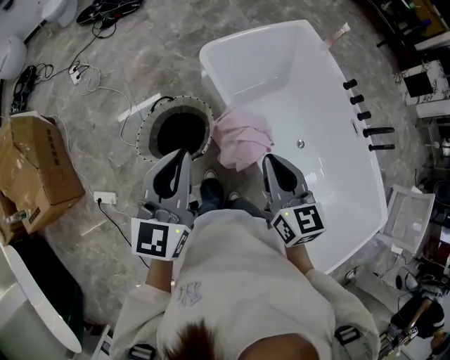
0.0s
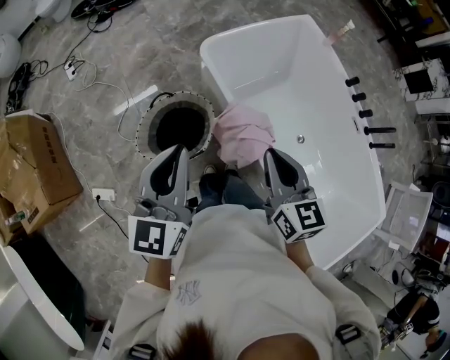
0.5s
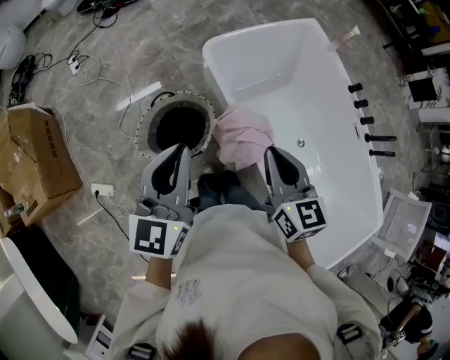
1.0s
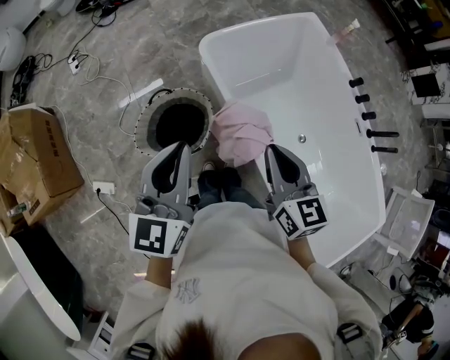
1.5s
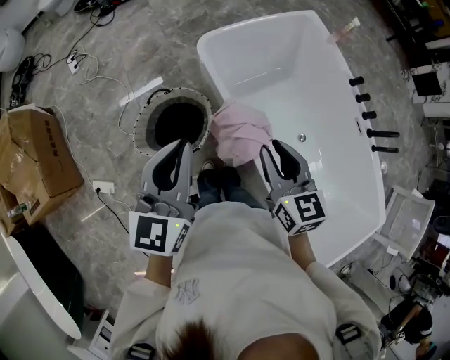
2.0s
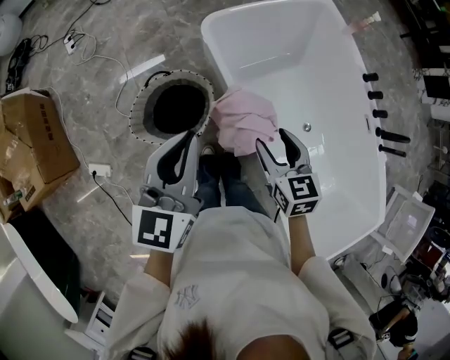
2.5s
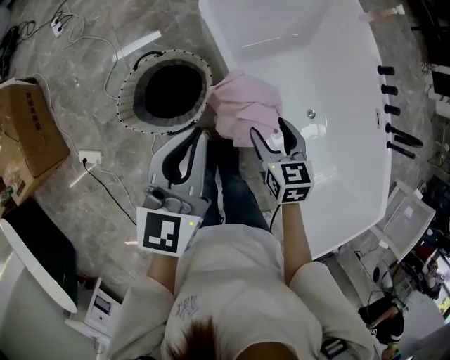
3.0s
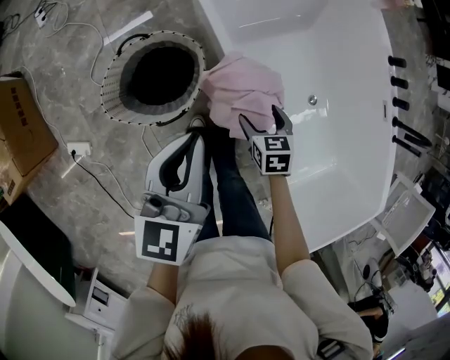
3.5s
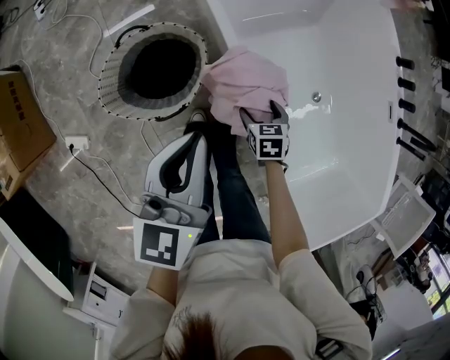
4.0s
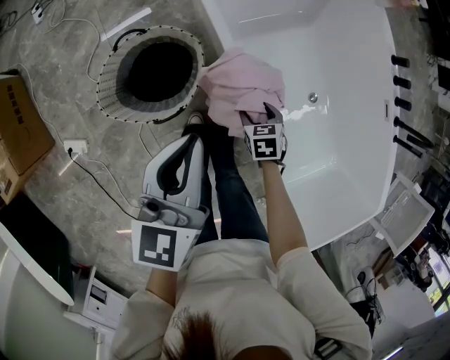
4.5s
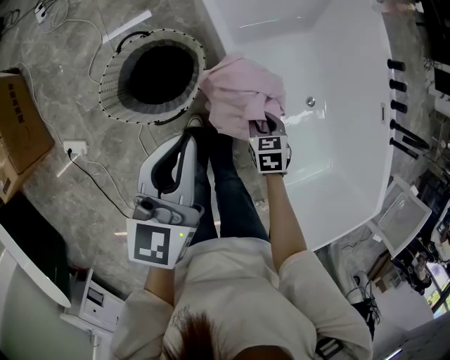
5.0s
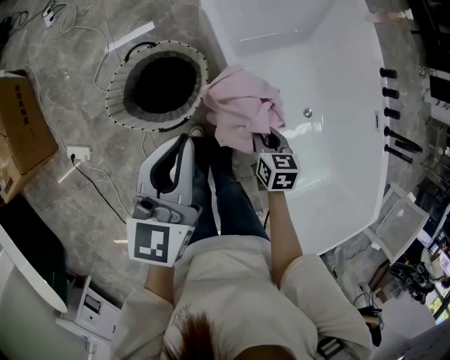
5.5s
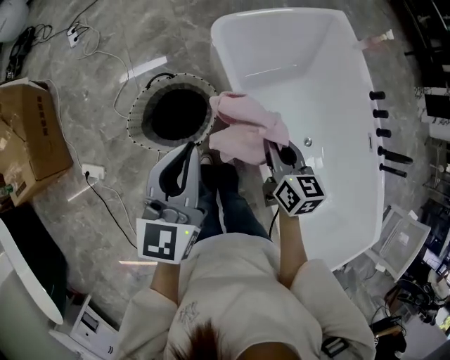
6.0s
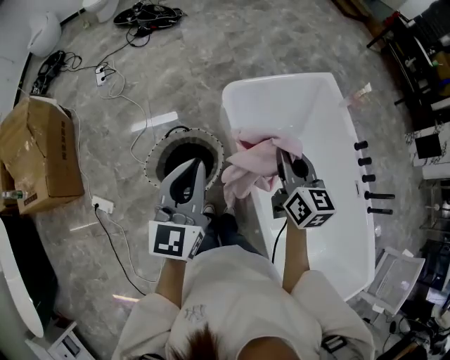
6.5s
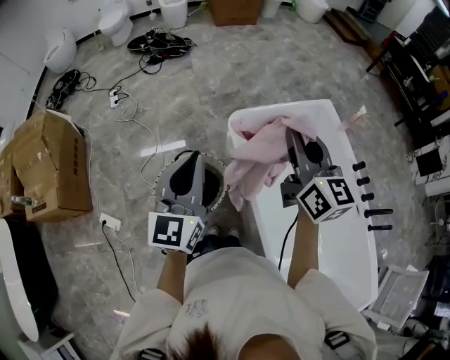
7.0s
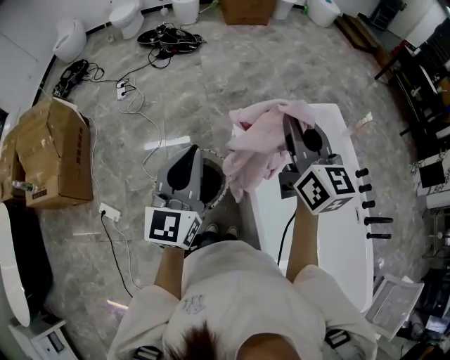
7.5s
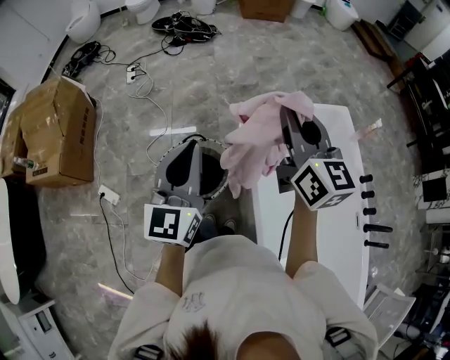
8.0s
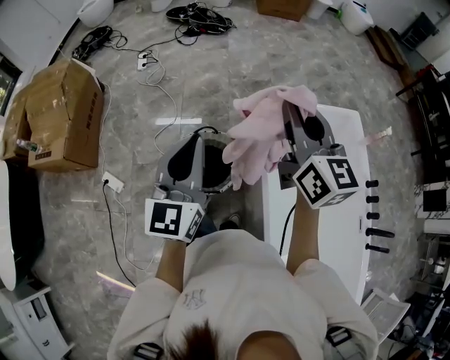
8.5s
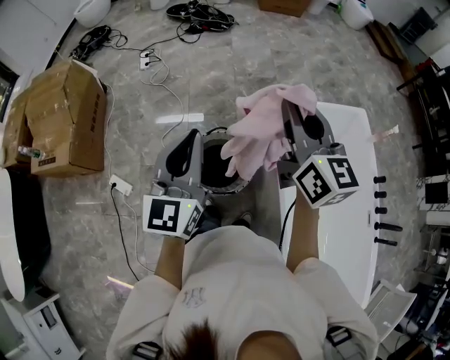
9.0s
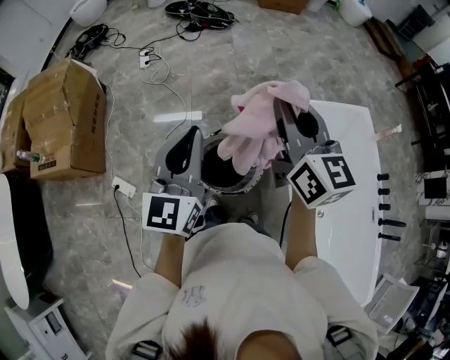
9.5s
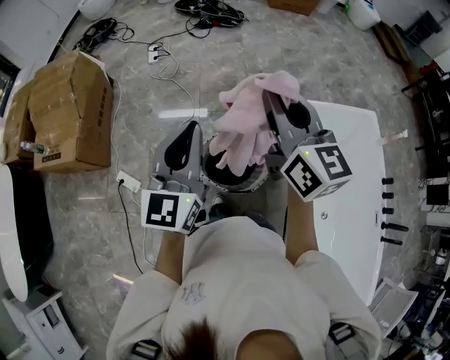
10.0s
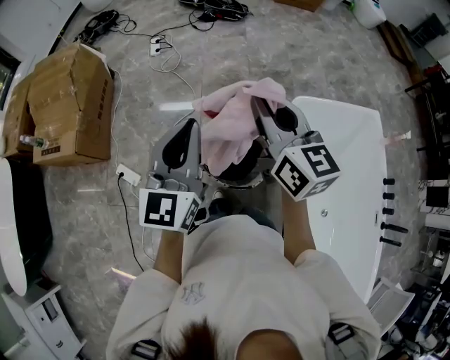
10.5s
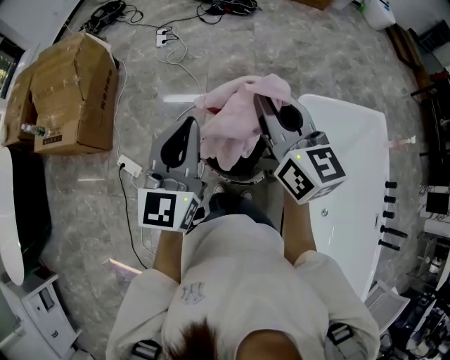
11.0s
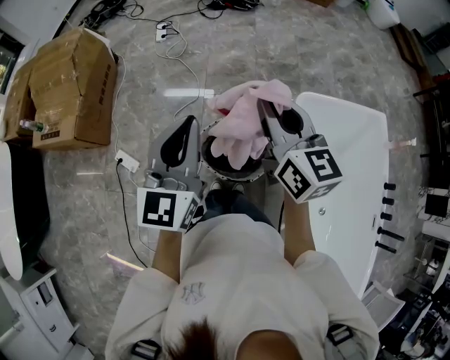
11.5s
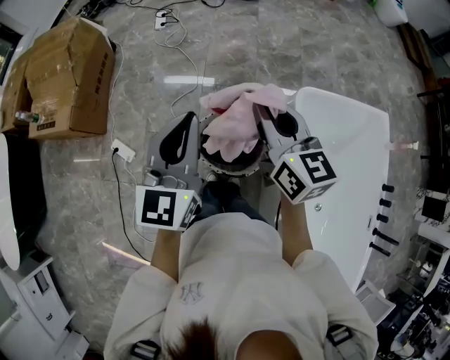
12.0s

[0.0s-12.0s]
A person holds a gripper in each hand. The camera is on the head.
0.0s to 2.0s: The right gripper shifts approximately 5 cm forward; the left gripper changes place by some 5 cm.
2.0s to 4.0s: The left gripper heads downward, covering about 20 cm, and changes its angle by approximately 20 degrees. Meanwhile the right gripper heads downward, covering some 40 cm, points its fingers some 40 degrees further downward, and opens up.
4.0s to 6.0s: The left gripper travels upward and to the left by approximately 10 cm. Meanwhile the right gripper heads upward, covering about 30 cm, angles its fingers upward, by approximately 40 degrees, and closes up.
6.0s to 8.0s: The left gripper travels upward by approximately 15 cm, and turns by about 30 degrees. Meanwhile the right gripper is displaced upward by some 35 cm, and changes its angle by approximately 40 degrees.
8.0s to 10.0s: The two grippers go some 25 cm to the left.
10.0s to 12.0s: The right gripper shifts roughly 10 cm downward.

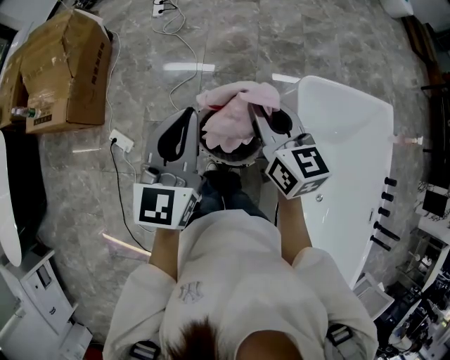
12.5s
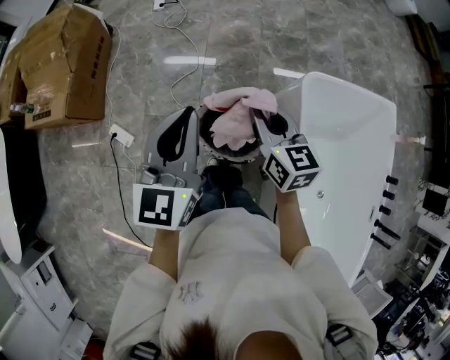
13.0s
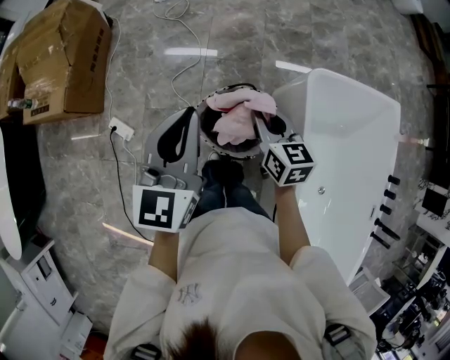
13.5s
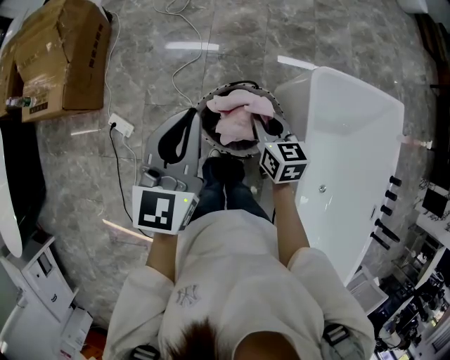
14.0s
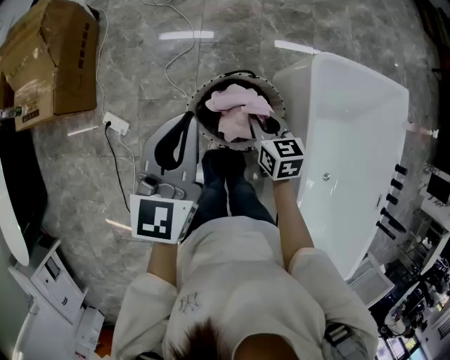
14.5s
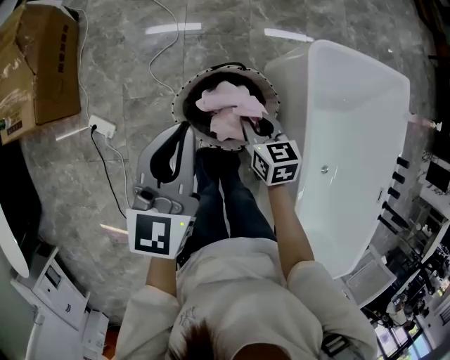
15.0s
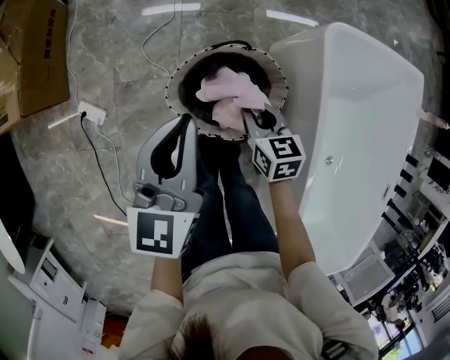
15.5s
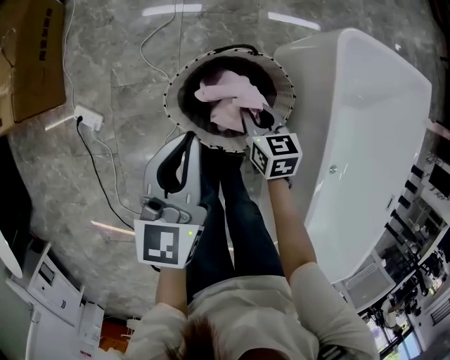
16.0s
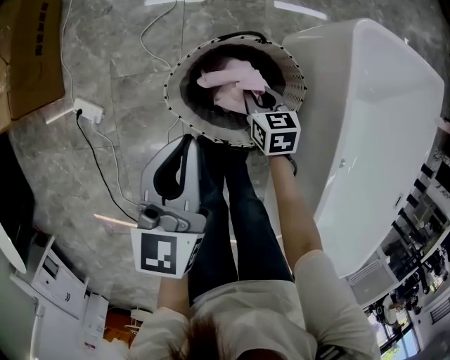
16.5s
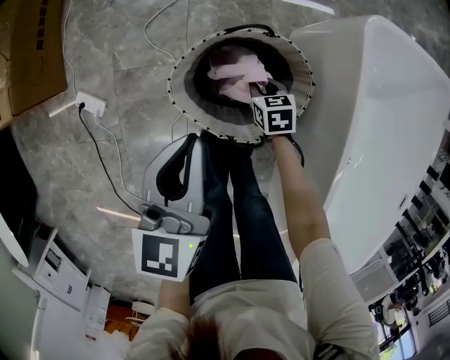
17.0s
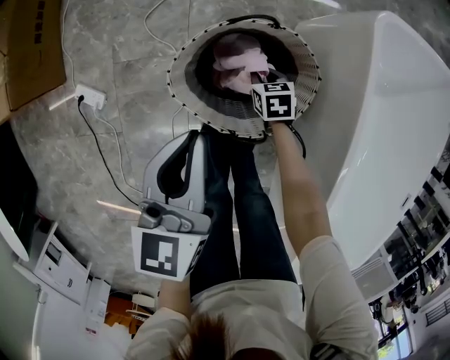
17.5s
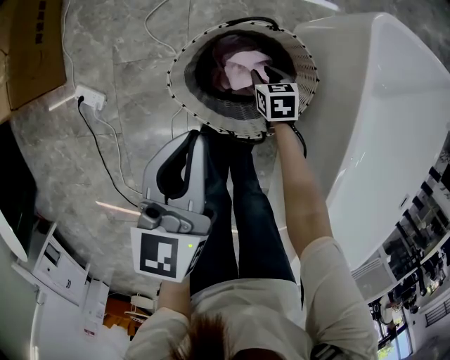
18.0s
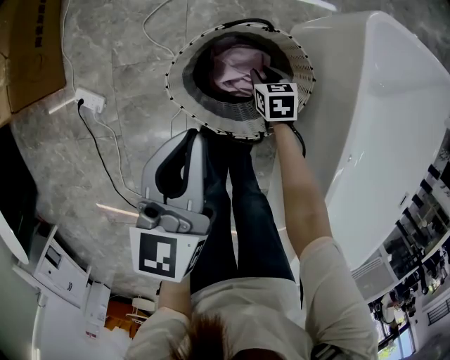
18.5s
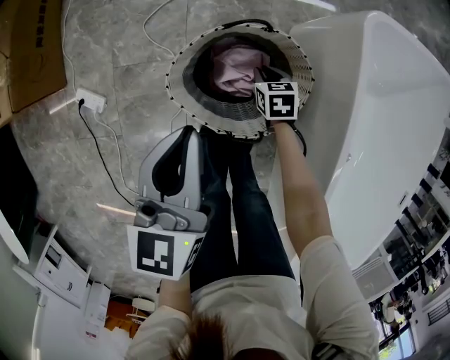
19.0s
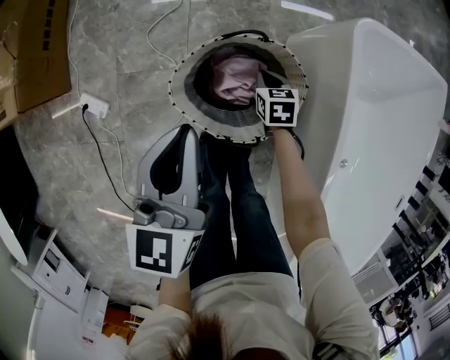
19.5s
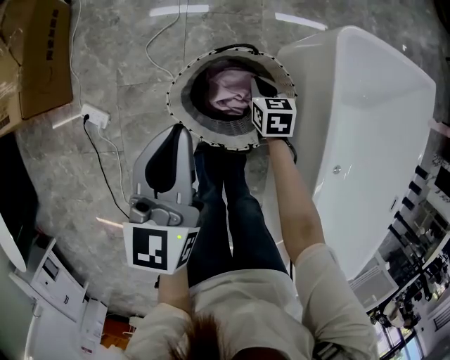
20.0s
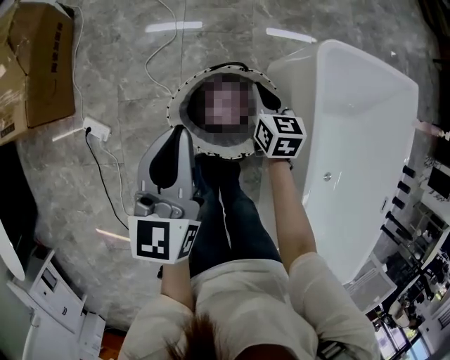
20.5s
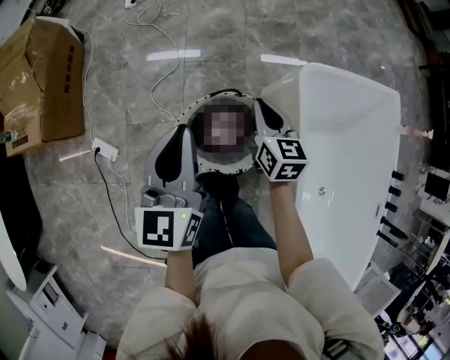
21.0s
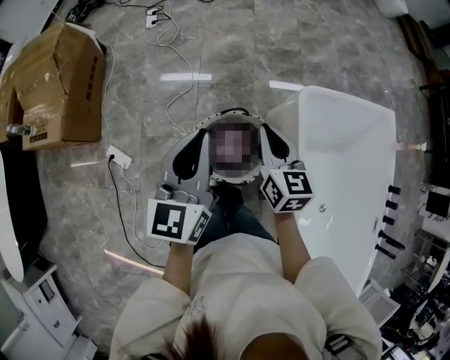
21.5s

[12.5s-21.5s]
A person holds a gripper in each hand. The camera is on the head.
12.5s to 14.5s: The right gripper shifts about 25 cm downward, and rotates some 20 degrees, while the left gripper shifts roughly 5 cm downward.
14.5s to 17.0s: The grippers both shift downward by roughly 30 cm. The right gripper rotates roughly 20 degrees.
17.0s to 19.5s: The right gripper shifts by approximately 5 cm.
19.5s to 21.5s: The left gripper is displaced upward by about 20 cm; the right gripper heads upward, covering approximately 40 cm, and angles its fingers upward, by about 40 degrees.

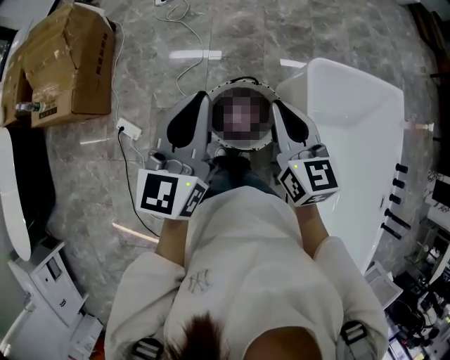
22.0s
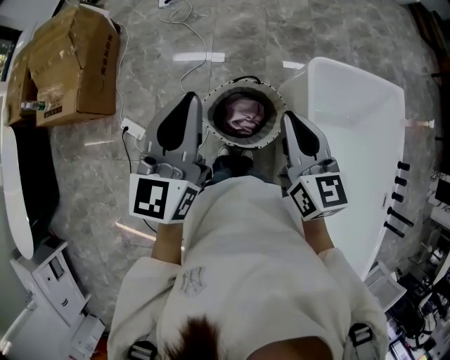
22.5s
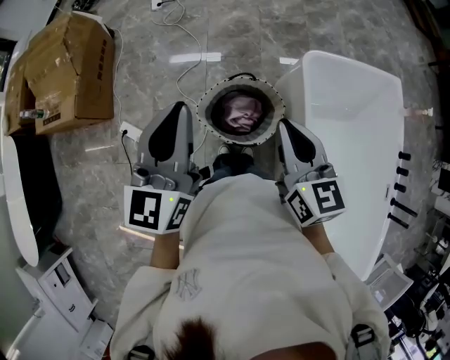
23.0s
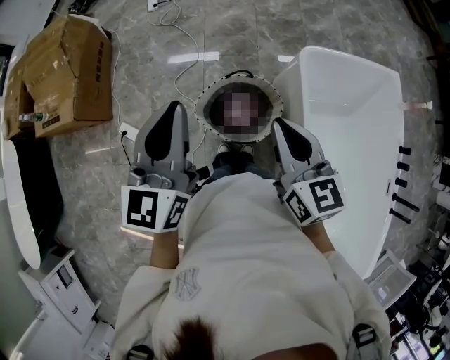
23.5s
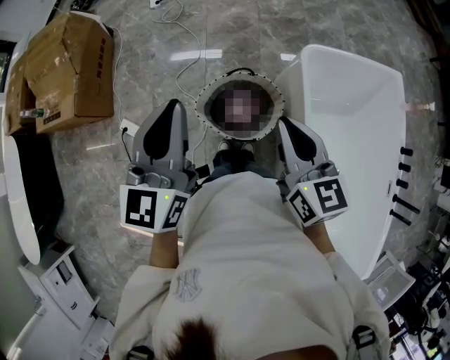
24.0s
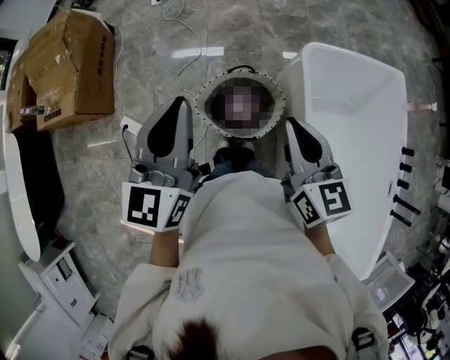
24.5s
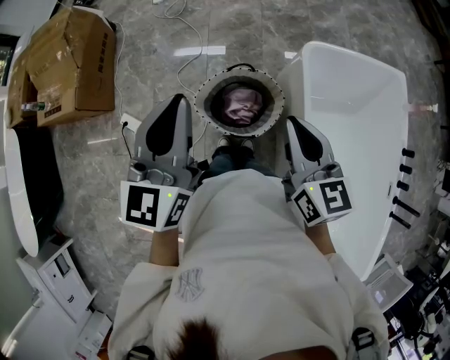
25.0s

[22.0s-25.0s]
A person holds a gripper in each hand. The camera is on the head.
22.0s to 23.5s: The left gripper moves about 5 cm. The right gripper is displaced backward by some 10 cm.
23.5s to 25.0s: The grippers make only small movements.

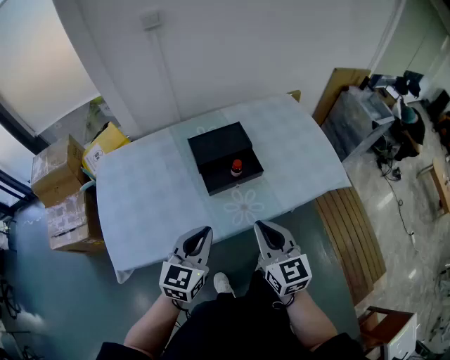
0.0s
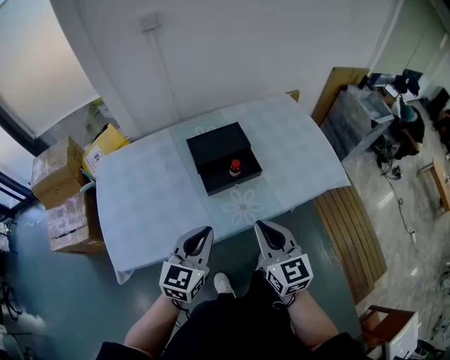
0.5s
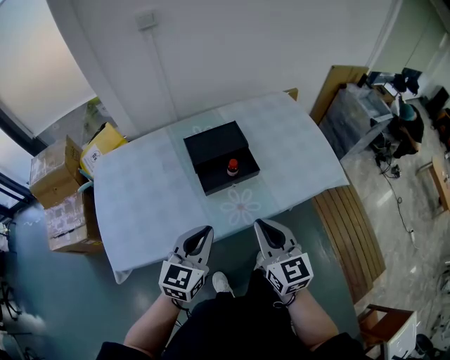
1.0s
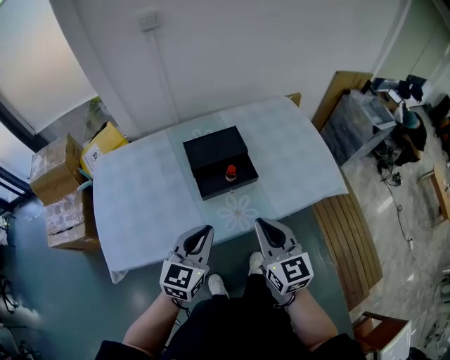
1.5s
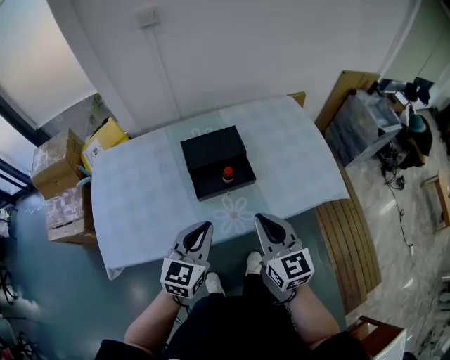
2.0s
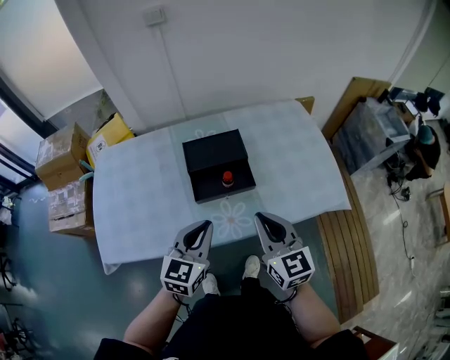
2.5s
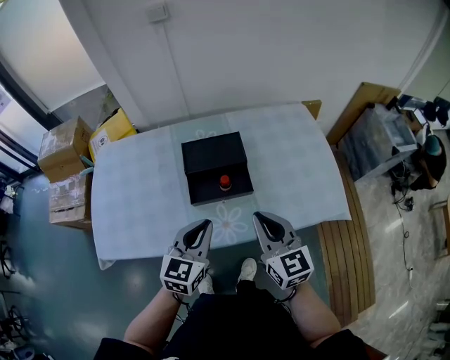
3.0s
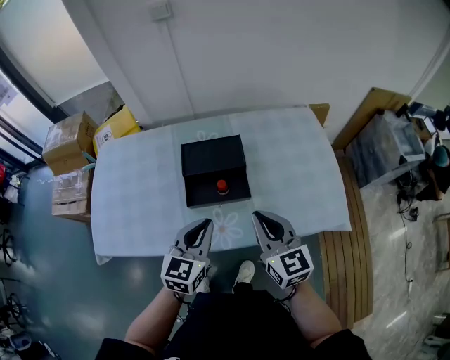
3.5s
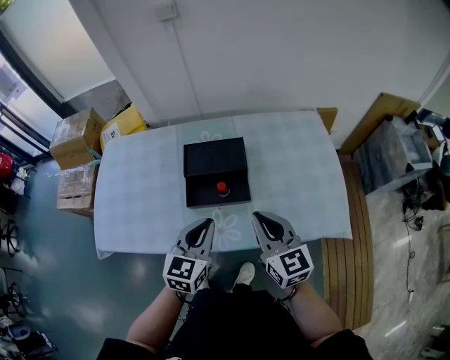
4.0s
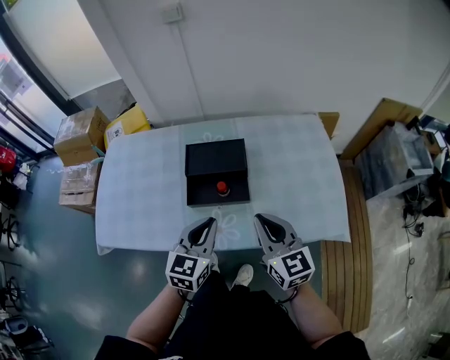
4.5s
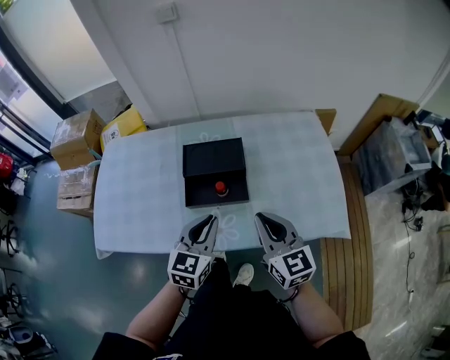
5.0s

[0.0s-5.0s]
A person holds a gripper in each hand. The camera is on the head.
0.0s to 2.5s: The two grippers go roughly 10 cm forward and to the right.
2.5s to 5.0s: The right gripper heads to the right and forward, covering some 10 cm. The left gripper moves to the right, roughly 5 cm.
